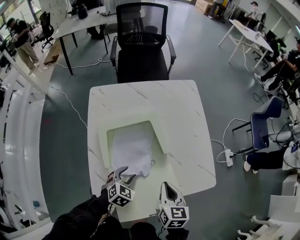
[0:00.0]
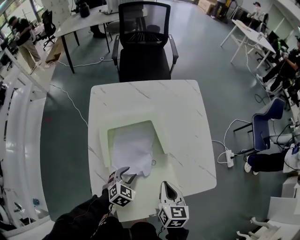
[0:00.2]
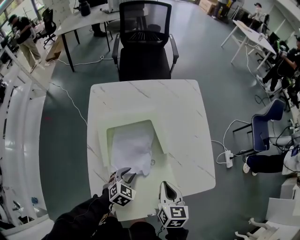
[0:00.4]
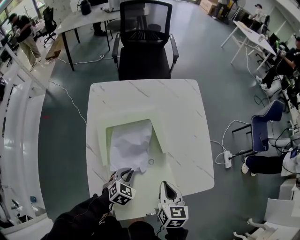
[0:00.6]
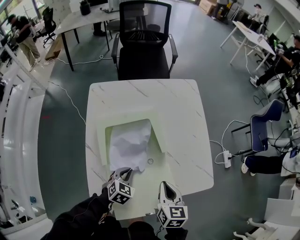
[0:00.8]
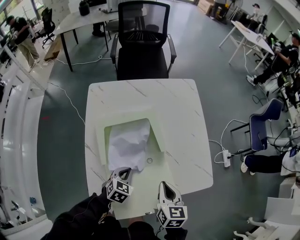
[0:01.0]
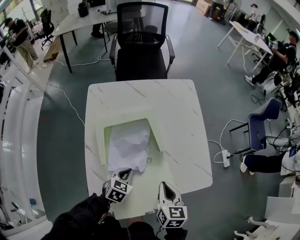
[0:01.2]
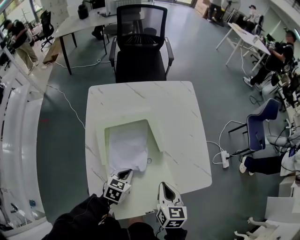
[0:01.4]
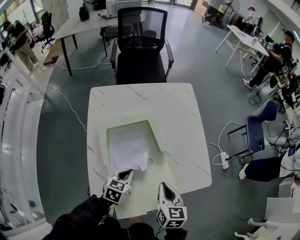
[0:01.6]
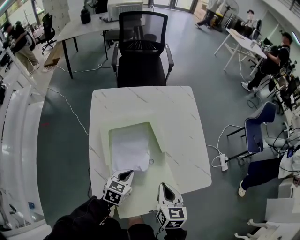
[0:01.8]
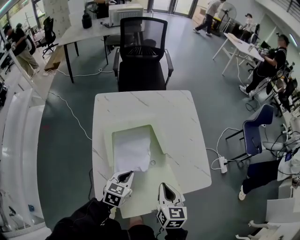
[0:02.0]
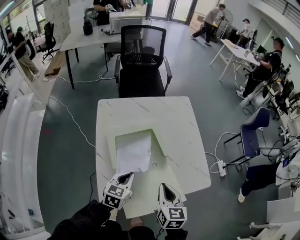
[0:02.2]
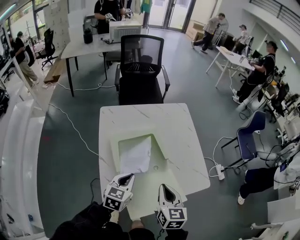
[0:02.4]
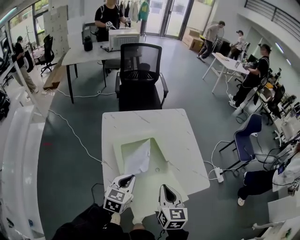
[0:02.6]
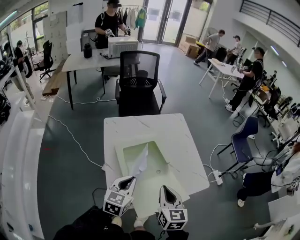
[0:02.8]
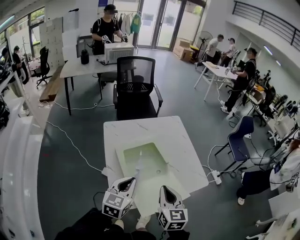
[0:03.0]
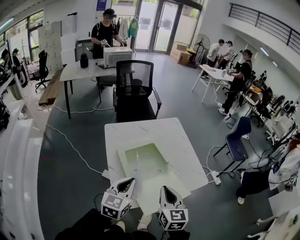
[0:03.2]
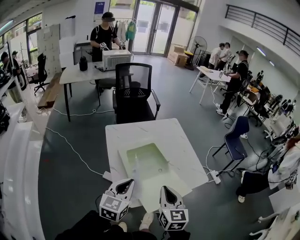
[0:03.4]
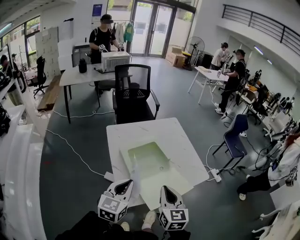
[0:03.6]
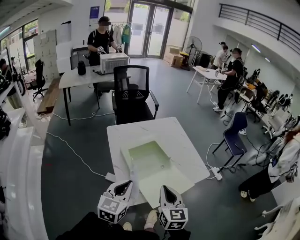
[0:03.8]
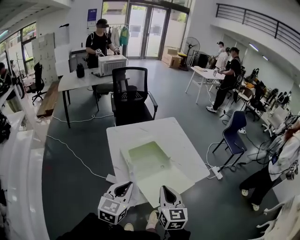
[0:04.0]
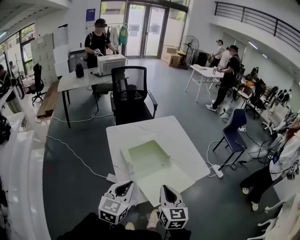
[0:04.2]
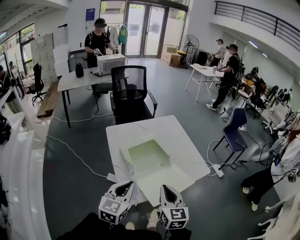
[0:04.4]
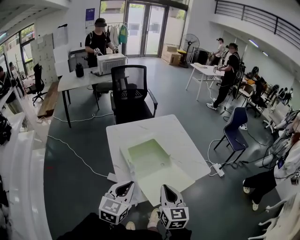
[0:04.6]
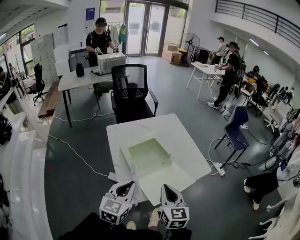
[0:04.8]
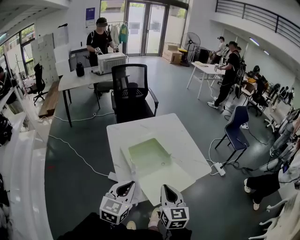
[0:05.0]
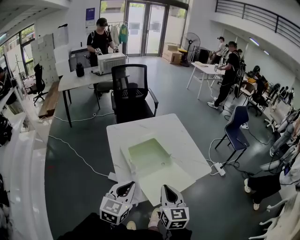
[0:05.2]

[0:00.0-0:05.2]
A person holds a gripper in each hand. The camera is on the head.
0:00.0 to 0:01.8: The left gripper heads upward, covering about 5 cm, swivels approximately 30 degrees, and closes.
0:01.8 to 0:03.4: The grippers both shift upward, backward and to the left by about 35 cm. The left gripper rotates roughly 30 degrees, while the right gripper rotates about 20 degrees.
0:03.4 to 0:05.2: Both grippers travel together backward, about 5 cm.

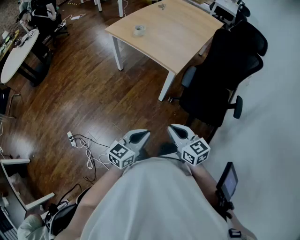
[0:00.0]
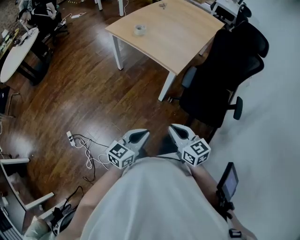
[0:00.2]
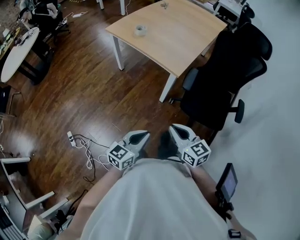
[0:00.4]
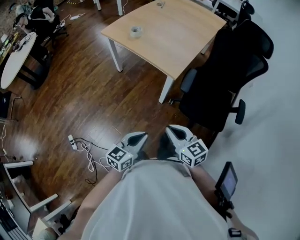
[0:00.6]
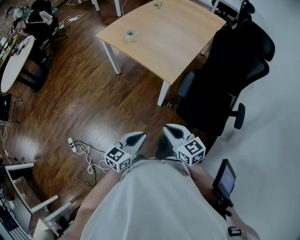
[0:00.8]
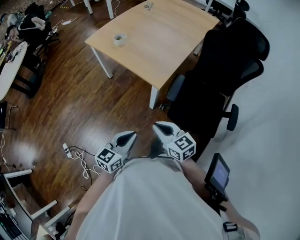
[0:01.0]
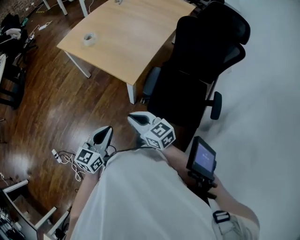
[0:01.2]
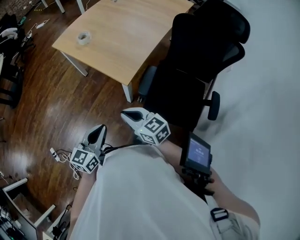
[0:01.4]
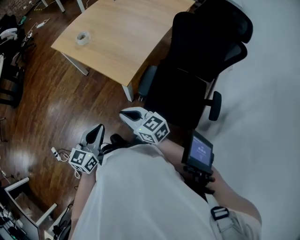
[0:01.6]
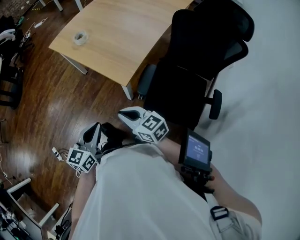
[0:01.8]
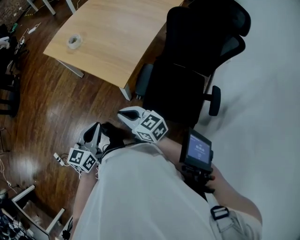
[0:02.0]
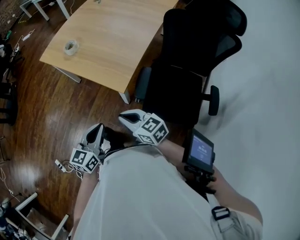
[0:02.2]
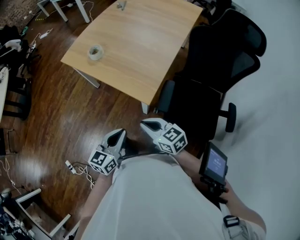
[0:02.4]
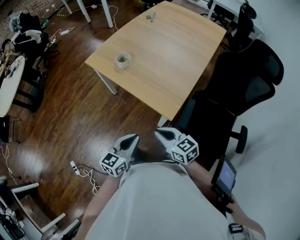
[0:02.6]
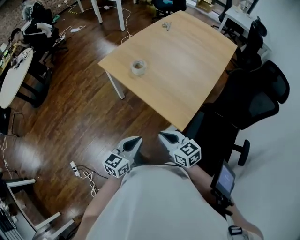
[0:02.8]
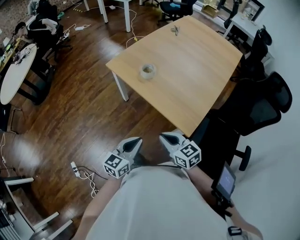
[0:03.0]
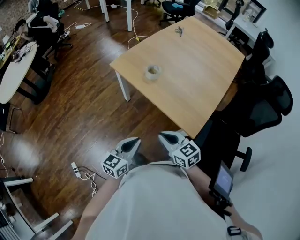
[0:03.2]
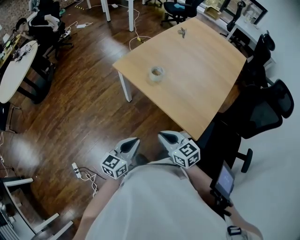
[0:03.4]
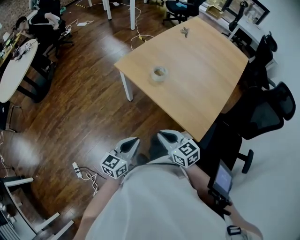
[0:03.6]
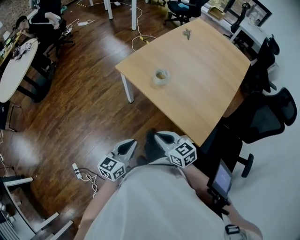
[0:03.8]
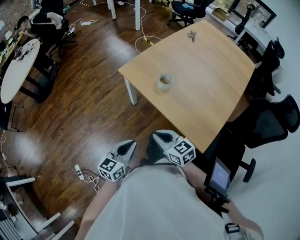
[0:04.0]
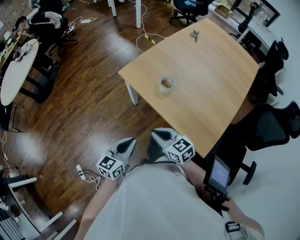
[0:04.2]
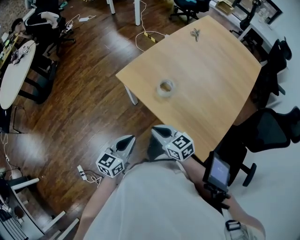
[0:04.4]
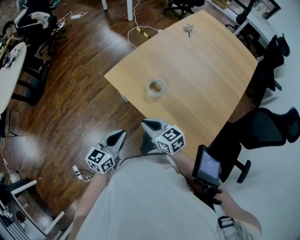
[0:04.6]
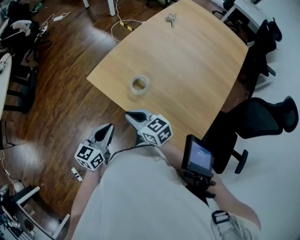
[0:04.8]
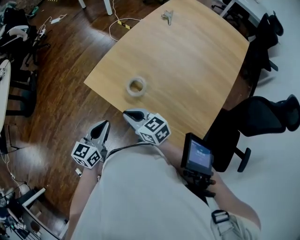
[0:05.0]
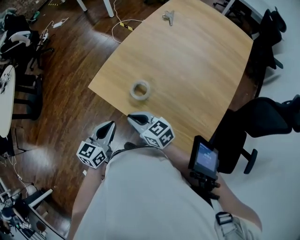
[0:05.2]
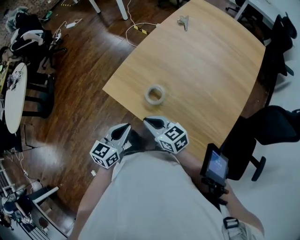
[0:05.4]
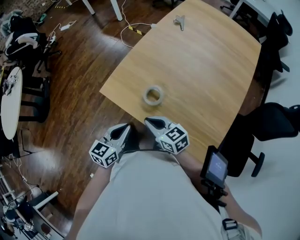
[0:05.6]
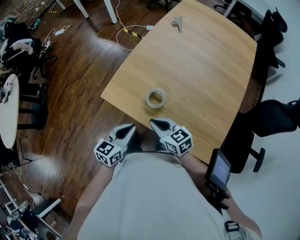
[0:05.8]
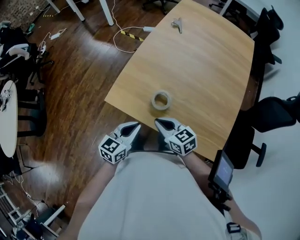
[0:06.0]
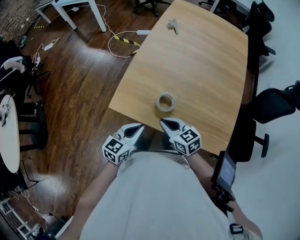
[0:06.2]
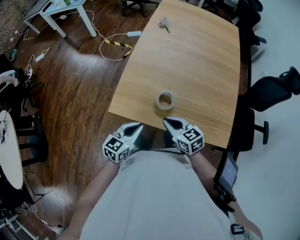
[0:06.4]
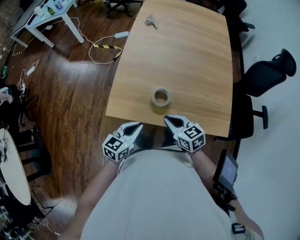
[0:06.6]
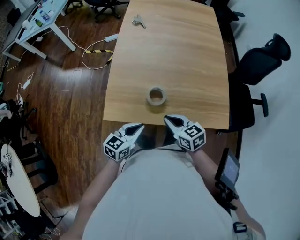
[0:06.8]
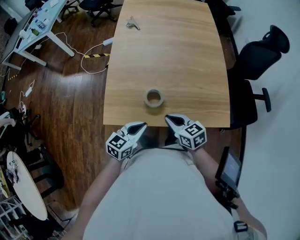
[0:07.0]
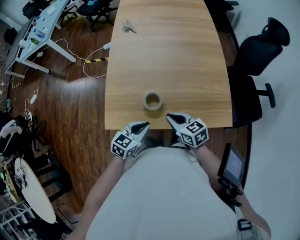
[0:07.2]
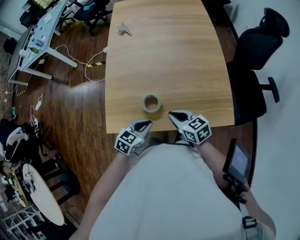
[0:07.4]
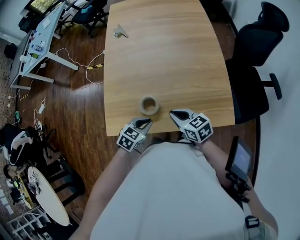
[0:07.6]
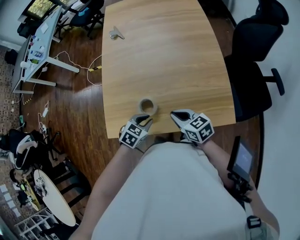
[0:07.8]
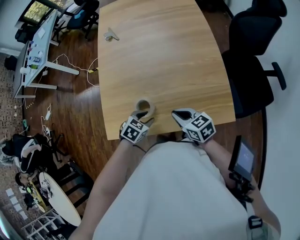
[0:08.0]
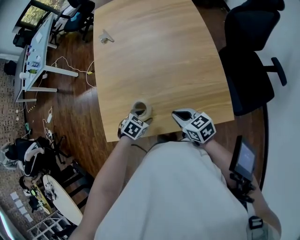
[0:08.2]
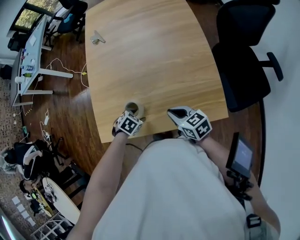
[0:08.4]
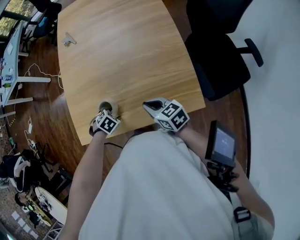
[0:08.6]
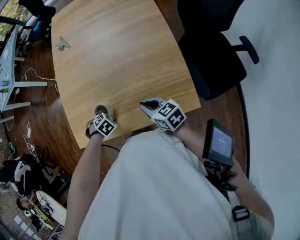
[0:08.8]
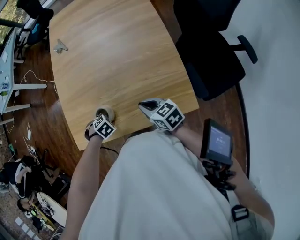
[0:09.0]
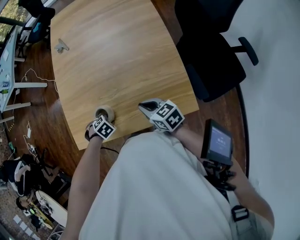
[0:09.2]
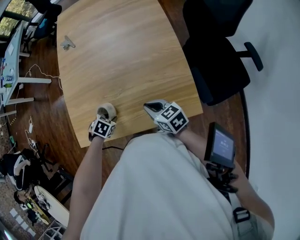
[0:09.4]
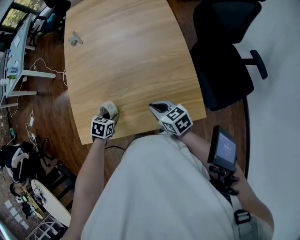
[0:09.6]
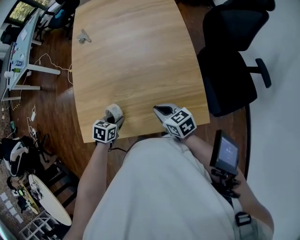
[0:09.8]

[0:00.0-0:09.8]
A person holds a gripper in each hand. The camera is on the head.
0:00.0 to 0:01.4: The right gripper shifts some 20 cm forward, while the left gripper travels forward and to the right by approximately 20 cm.
0:01.4 to 0:02.8: The two grippers go roughly 20 cm forward and to the left.
0:02.8 to 0:04.2: The right gripper heads forward and to the left, covering roughly 25 cm. Meanwhile the left gripper moves to the left and forward, roughly 25 cm.
0:04.2 to 0:05.6: Both grippers move forward, some 20 cm.
0:05.6 to 0:07.0: The left gripper rotates roughly 40 degrees. Meanwhile the right gripper rotates some 40 degrees.
0:07.0 to 0:08.4: The right gripper changes place by roughly 15 cm, while the left gripper moves downward, some 15 cm, angles its fingers downward, by some 50 degrees, and opens.
0:08.4 to 0:09.8: The right gripper moves about 5 cm. The left gripper turns by about 30 degrees, and closes.

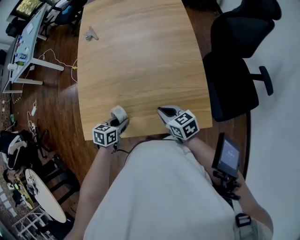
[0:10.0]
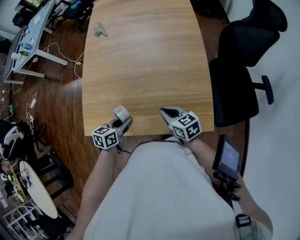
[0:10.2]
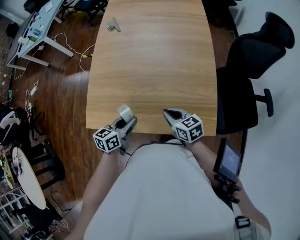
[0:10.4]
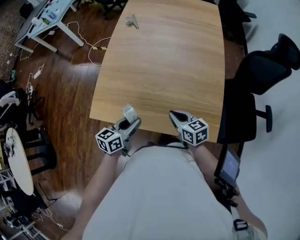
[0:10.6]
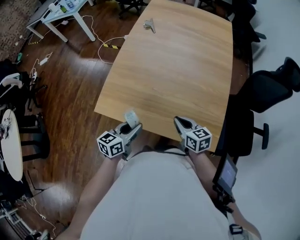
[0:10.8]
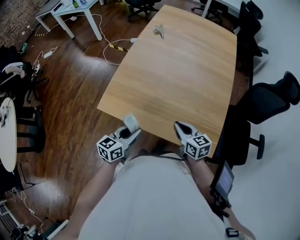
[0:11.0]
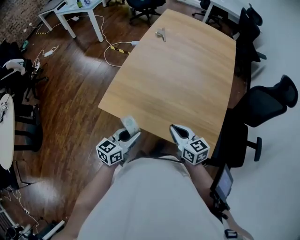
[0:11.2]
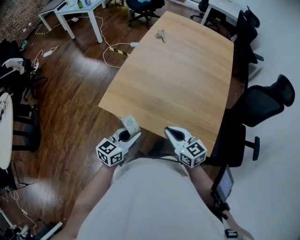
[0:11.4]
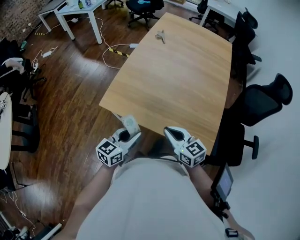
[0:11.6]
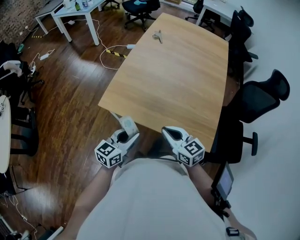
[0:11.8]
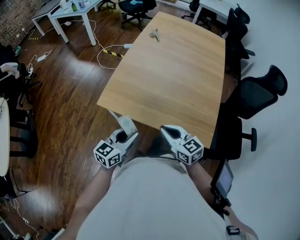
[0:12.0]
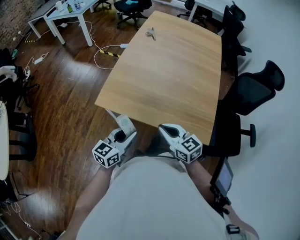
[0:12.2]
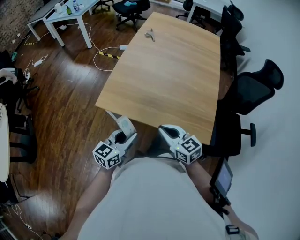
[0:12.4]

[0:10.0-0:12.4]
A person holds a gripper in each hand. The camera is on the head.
0:10.0 to 0:11.2: The left gripper moves backward, upward and to the left, roughly 20 cm, and tilts its fingers about 30 degrees upward. The right gripper goes approximately 15 cm to the left, upward and backward.
0:11.2 to 0:12.4: The right gripper travels backward and to the left by about 10 cm, while the left gripper is displaced backward by approximately 5 cm.

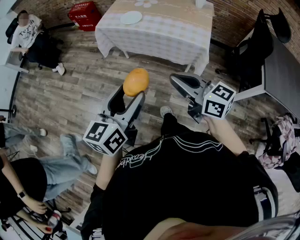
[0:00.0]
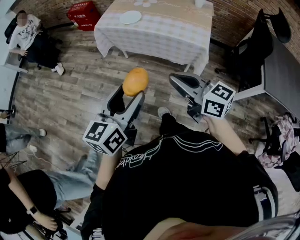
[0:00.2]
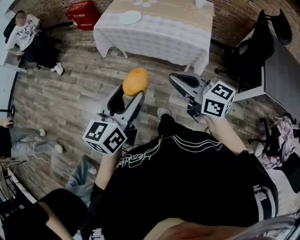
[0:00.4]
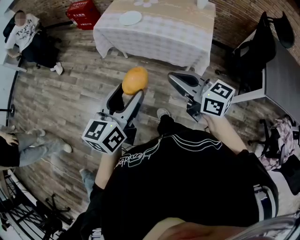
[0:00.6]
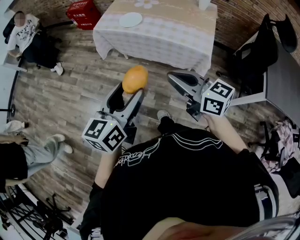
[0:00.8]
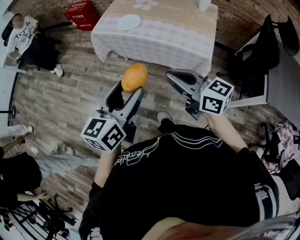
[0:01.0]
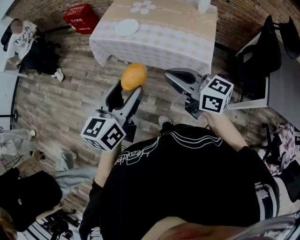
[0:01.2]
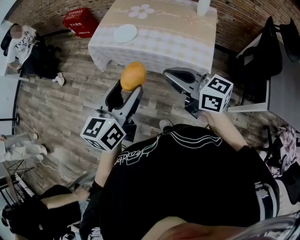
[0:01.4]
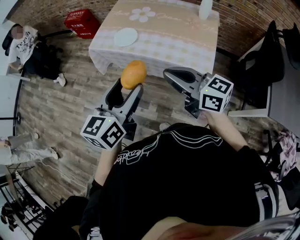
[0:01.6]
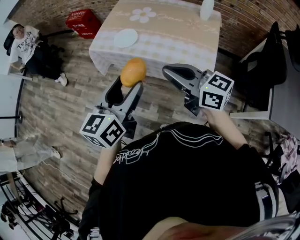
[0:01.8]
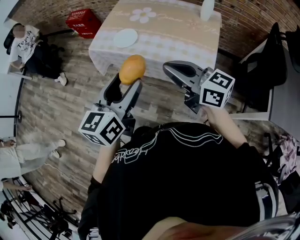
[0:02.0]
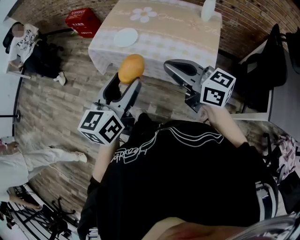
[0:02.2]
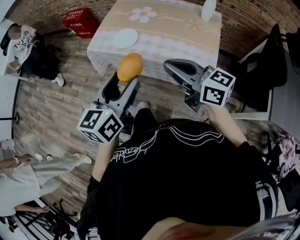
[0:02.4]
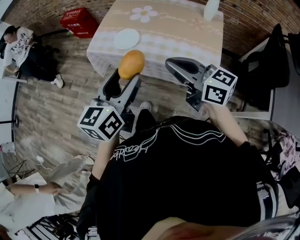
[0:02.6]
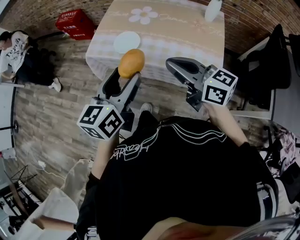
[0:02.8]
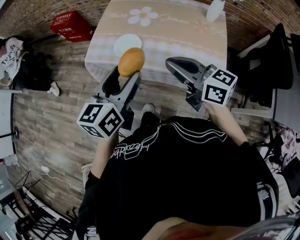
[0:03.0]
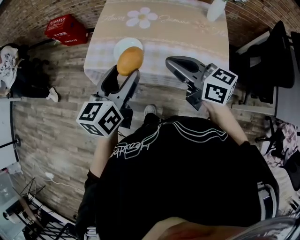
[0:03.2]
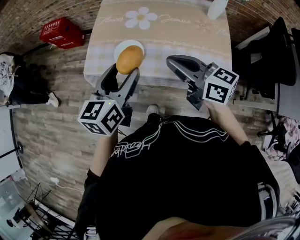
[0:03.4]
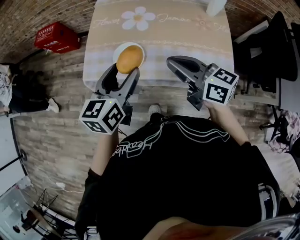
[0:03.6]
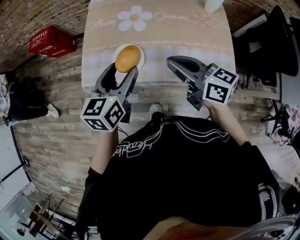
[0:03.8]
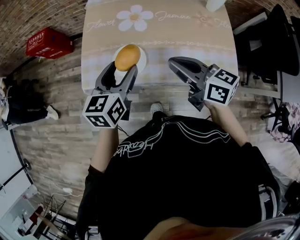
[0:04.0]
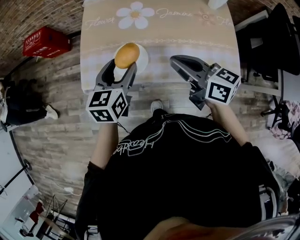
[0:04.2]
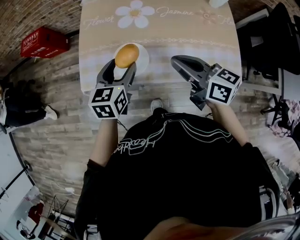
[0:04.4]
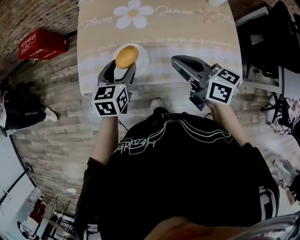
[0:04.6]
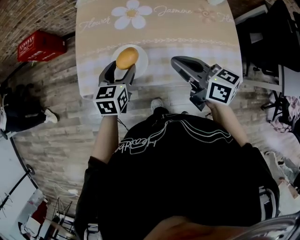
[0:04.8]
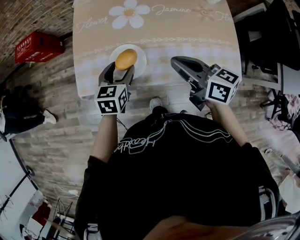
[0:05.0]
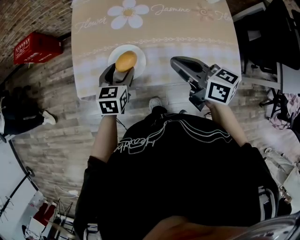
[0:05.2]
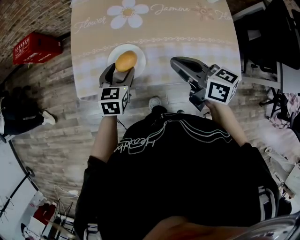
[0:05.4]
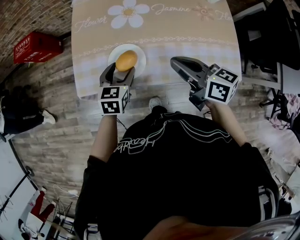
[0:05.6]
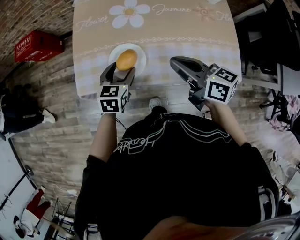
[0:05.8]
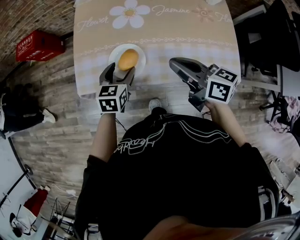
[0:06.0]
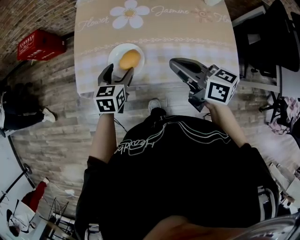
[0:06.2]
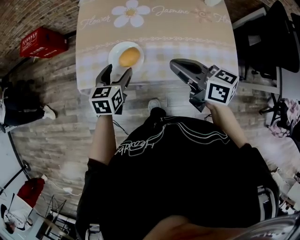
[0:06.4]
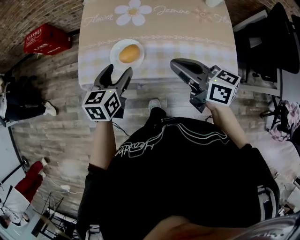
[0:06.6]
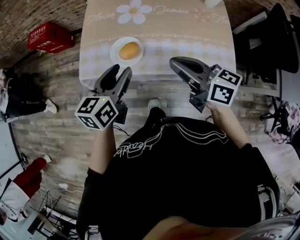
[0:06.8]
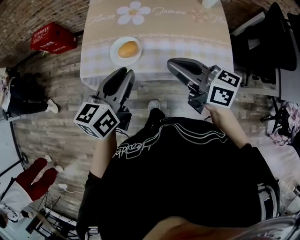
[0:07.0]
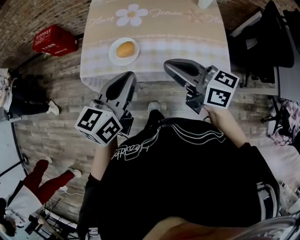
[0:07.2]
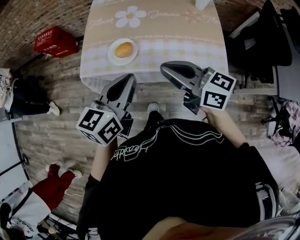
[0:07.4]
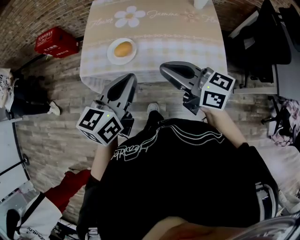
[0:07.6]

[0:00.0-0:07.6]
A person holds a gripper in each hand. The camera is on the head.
0:00.0 to 0:01.6: The left gripper shifts about 25 cm forward and to the right. The right gripper travels forward by some 20 cm.
0:01.6 to 0:03.0: Both grippers move forward, about 15 cm.
0:03.0 to 0:04.6: The left gripper goes roughly 30 cm forward and downward, and changes its angle by about 30 degrees; the right gripper travels forward and downward by some 20 cm, and turns by approximately 20 degrees.
0:04.6 to 0:06.0: The left gripper shifts approximately 5 cm downward.
0:06.0 to 0:07.6: The right gripper is displaced backward and upward by some 15 cm; the left gripper is displaced upward and backward by about 30 cm, swivels some 30 degrees, and closes up.
